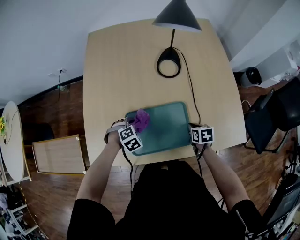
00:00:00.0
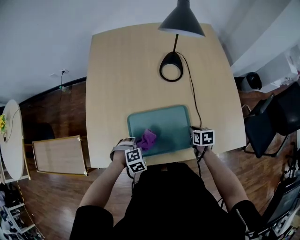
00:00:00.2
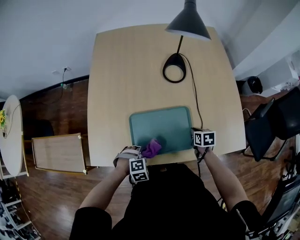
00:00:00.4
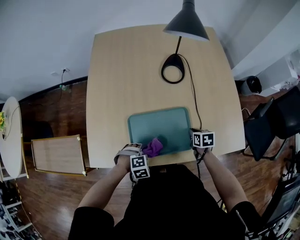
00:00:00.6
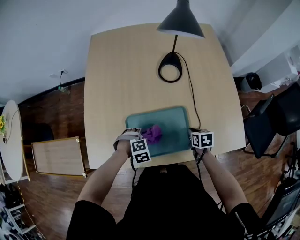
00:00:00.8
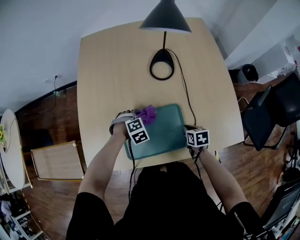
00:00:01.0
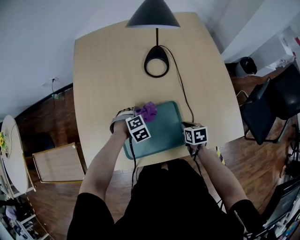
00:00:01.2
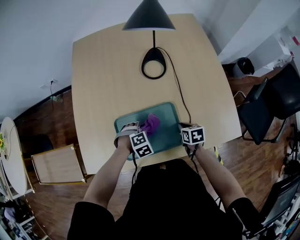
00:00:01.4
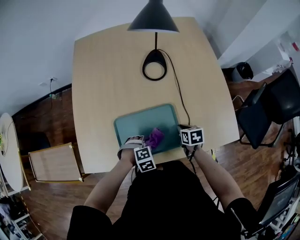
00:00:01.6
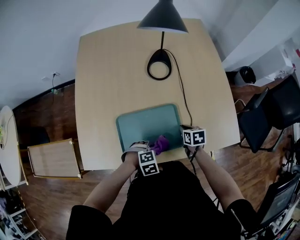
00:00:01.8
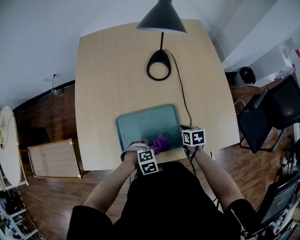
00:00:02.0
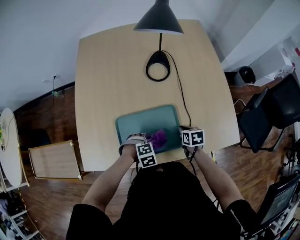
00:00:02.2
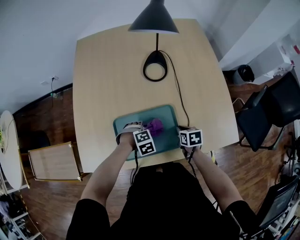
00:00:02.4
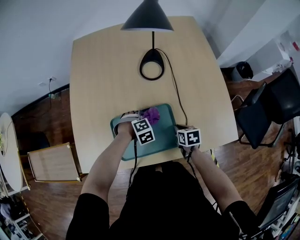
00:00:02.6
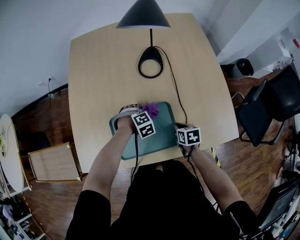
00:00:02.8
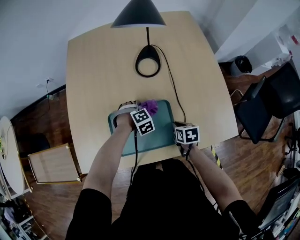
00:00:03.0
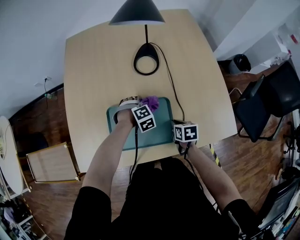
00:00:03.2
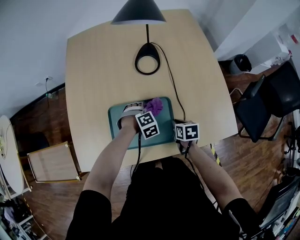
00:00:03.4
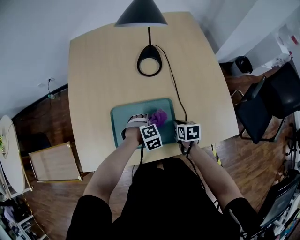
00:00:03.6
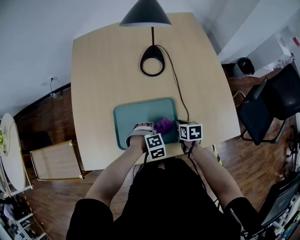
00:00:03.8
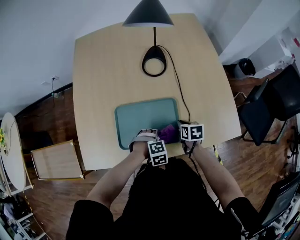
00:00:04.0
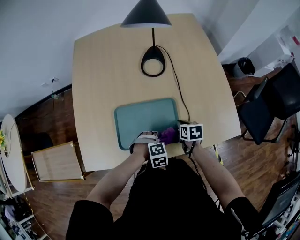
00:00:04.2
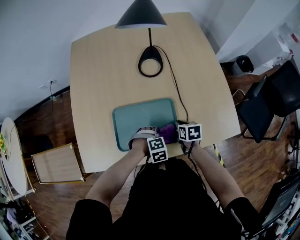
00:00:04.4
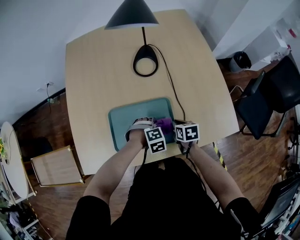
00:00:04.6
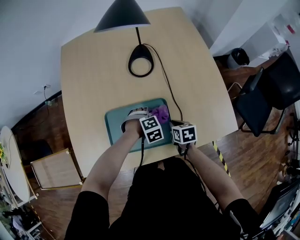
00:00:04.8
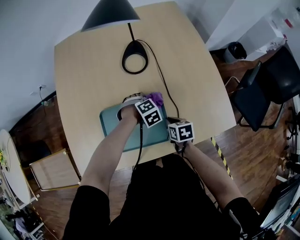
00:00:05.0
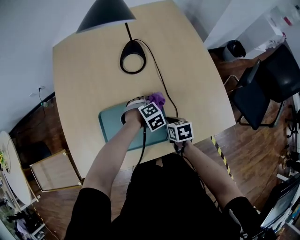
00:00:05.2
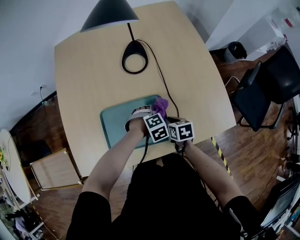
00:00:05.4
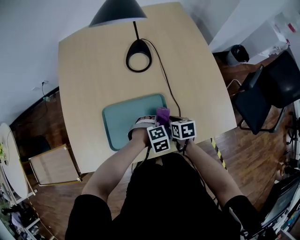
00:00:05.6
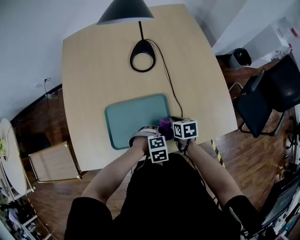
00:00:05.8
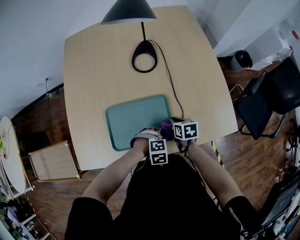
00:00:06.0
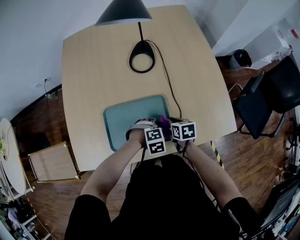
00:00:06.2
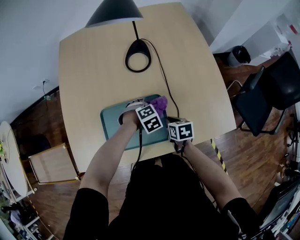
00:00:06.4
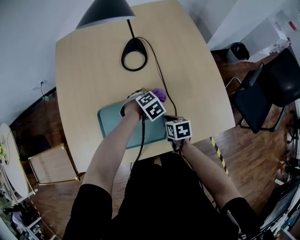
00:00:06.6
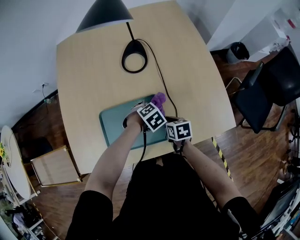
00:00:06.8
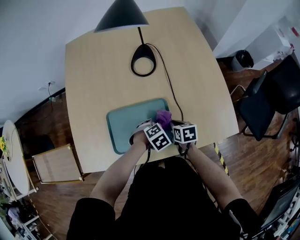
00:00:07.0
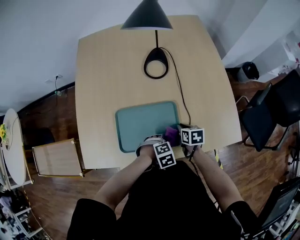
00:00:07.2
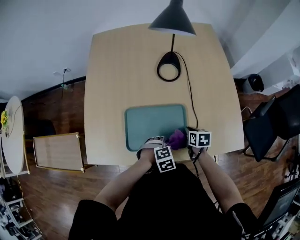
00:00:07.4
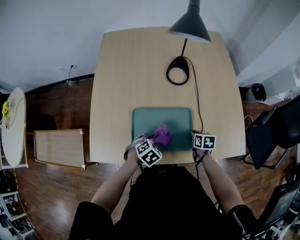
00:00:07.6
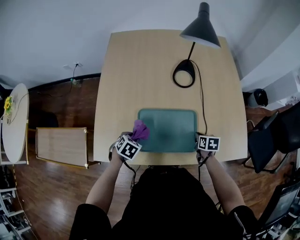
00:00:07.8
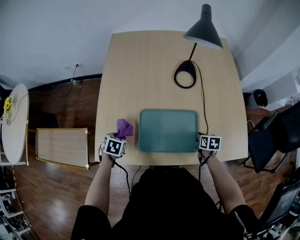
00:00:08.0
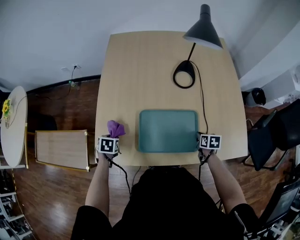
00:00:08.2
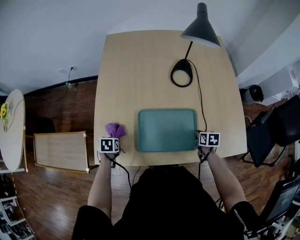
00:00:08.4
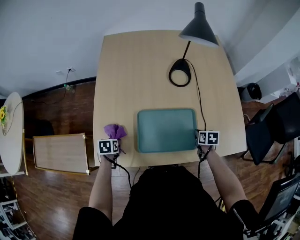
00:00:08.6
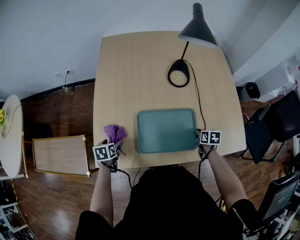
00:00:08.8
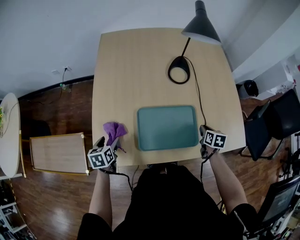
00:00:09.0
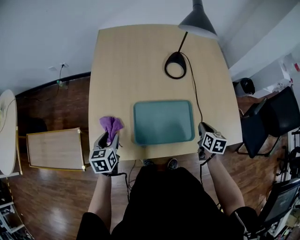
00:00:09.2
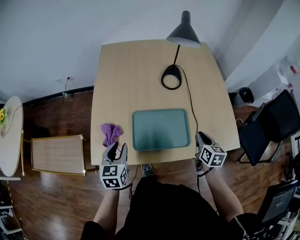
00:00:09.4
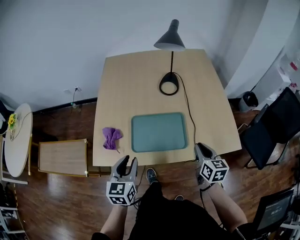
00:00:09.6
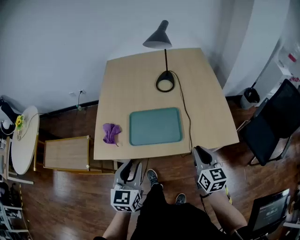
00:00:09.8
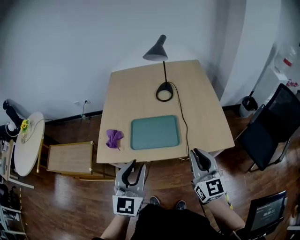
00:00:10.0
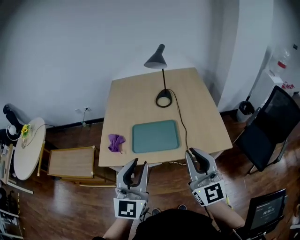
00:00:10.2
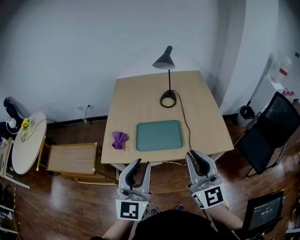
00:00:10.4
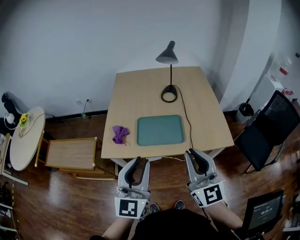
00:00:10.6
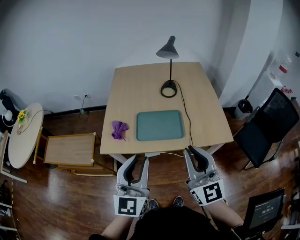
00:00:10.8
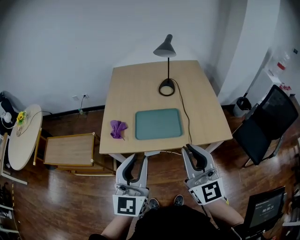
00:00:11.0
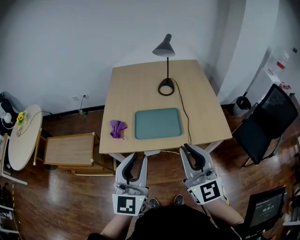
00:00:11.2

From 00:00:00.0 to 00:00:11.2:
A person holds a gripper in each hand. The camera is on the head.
From 00:00:00.0 to 00:00:01.6: The left gripper goes forward and backward, approximately 20 cm each way, reversing 2 times.
From 00:00:01.6 to 00:00:03.2: The left gripper shifts by approximately 20 cm.
From 00:00:06.4 to 00:00:08.0: The left gripper changes place by some 35 cm, and rotates around the line of its fingers by approximately 60 degrees, counterclockwise from behind.
From 00:00:08.0 to 00:00:09.6: The left gripper travels upward, to the right and backward by about 25 cm, tilts its fingers approximately 50 degrees upward, and opens and closes again. The right gripper is displaced upward and backward by approximately 25 cm, and tilts its fingers about 30 degrees upward.
From 00:00:09.6 to 00:00:11.2: The left gripper shifts approximately 25 cm upward and backward, and tilts its fingers about 30 degrees upward; the right gripper moves upward, backward and to the left, some 35 cm, and tilts its fingers some 40 degrees upward.

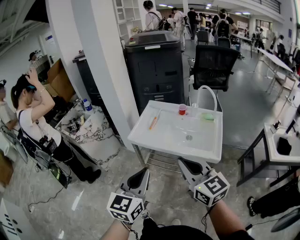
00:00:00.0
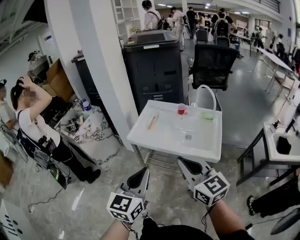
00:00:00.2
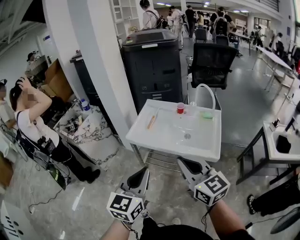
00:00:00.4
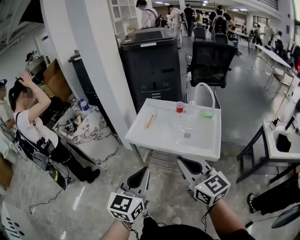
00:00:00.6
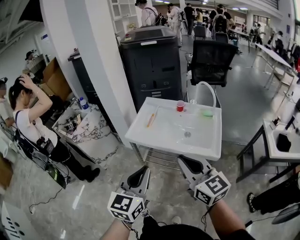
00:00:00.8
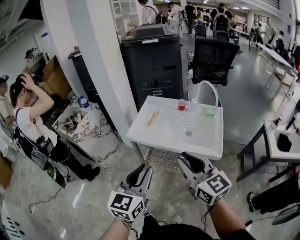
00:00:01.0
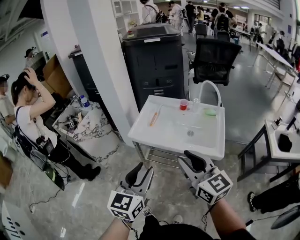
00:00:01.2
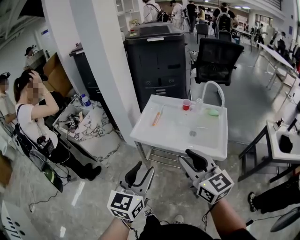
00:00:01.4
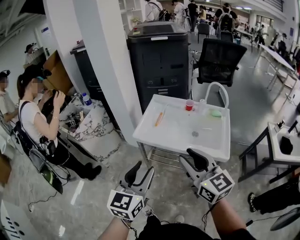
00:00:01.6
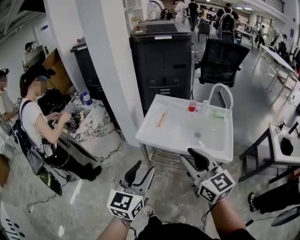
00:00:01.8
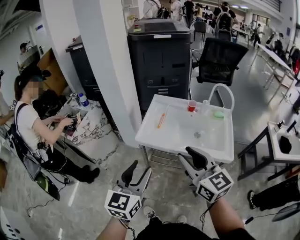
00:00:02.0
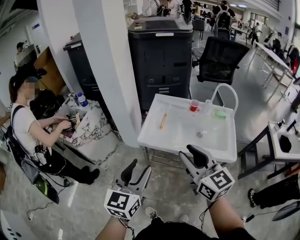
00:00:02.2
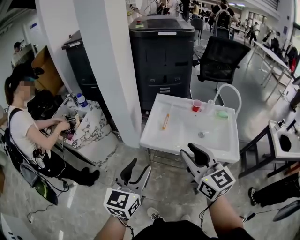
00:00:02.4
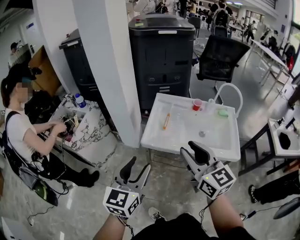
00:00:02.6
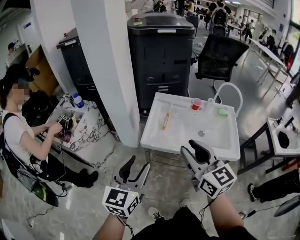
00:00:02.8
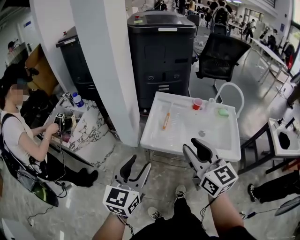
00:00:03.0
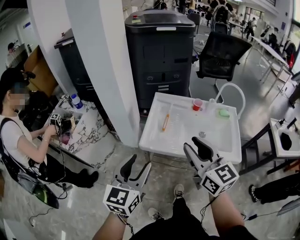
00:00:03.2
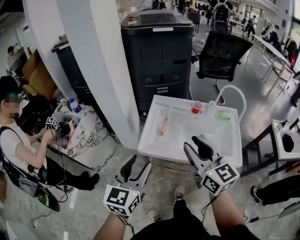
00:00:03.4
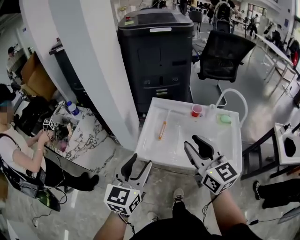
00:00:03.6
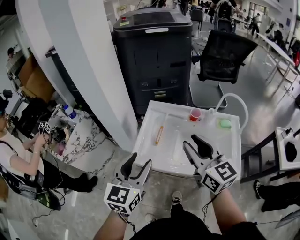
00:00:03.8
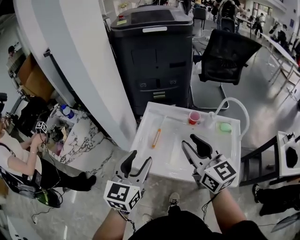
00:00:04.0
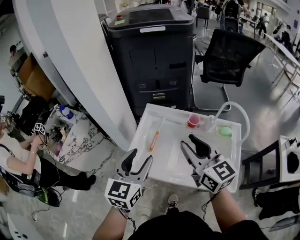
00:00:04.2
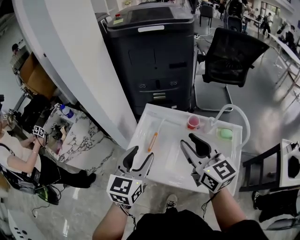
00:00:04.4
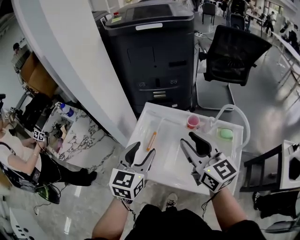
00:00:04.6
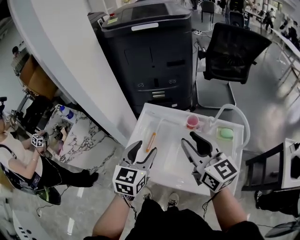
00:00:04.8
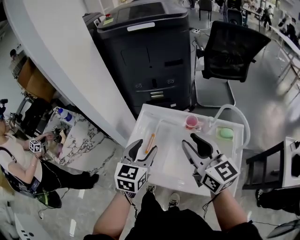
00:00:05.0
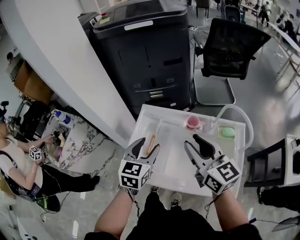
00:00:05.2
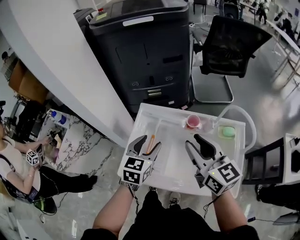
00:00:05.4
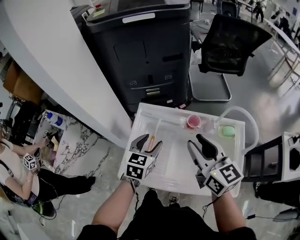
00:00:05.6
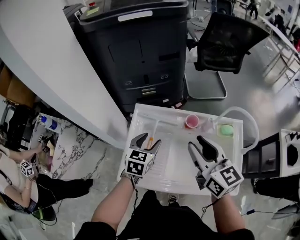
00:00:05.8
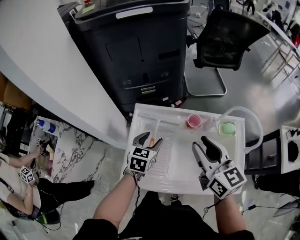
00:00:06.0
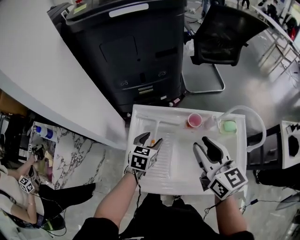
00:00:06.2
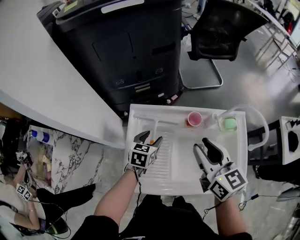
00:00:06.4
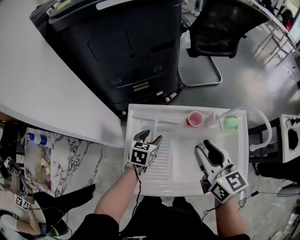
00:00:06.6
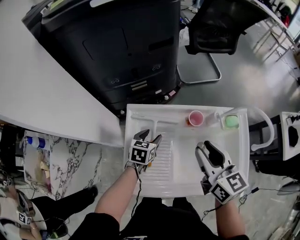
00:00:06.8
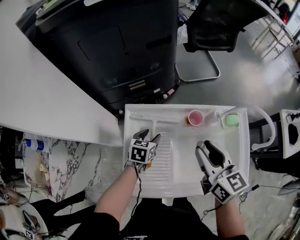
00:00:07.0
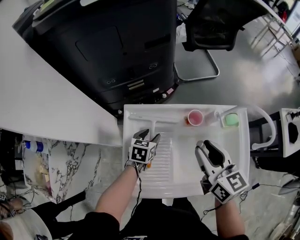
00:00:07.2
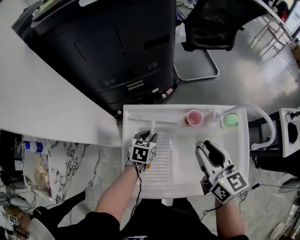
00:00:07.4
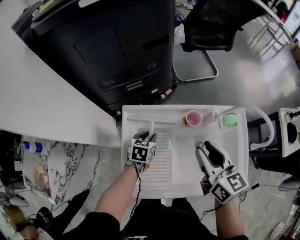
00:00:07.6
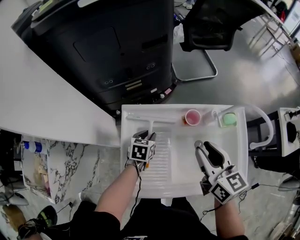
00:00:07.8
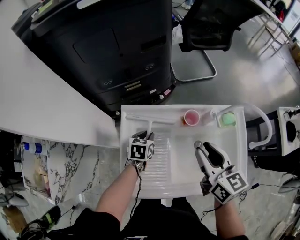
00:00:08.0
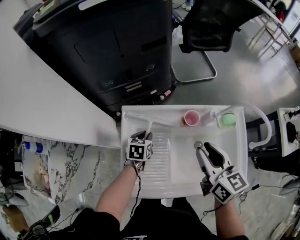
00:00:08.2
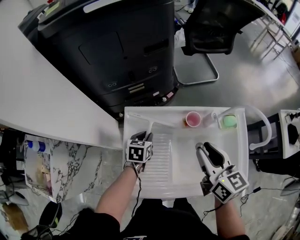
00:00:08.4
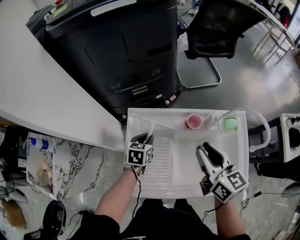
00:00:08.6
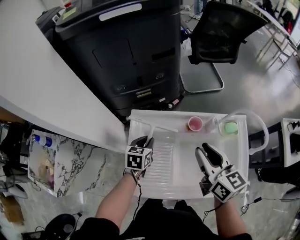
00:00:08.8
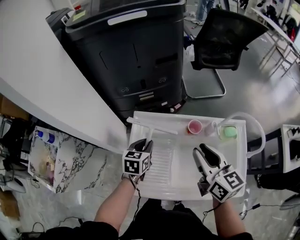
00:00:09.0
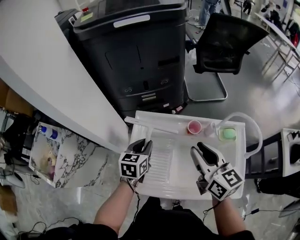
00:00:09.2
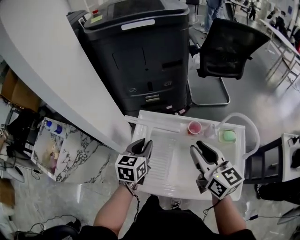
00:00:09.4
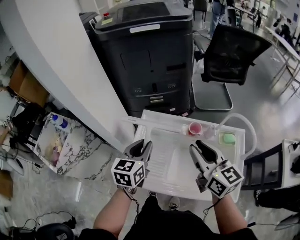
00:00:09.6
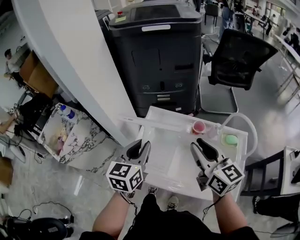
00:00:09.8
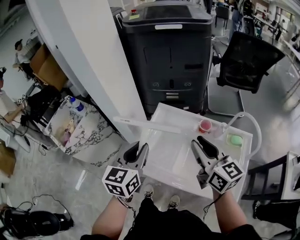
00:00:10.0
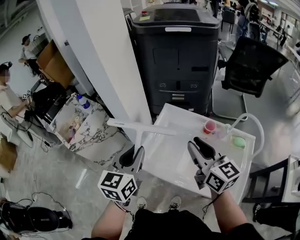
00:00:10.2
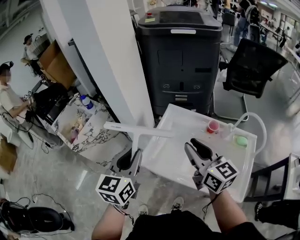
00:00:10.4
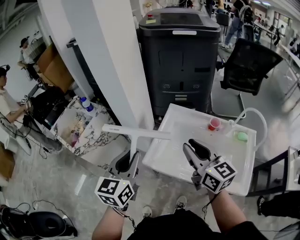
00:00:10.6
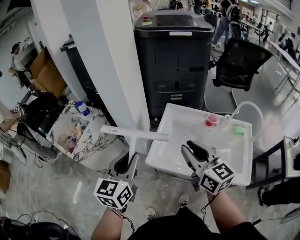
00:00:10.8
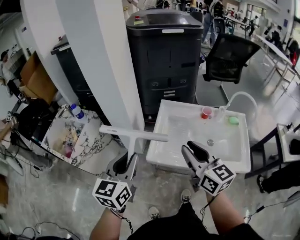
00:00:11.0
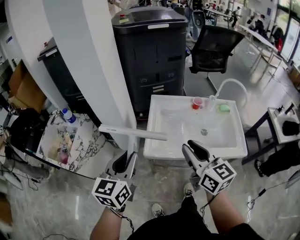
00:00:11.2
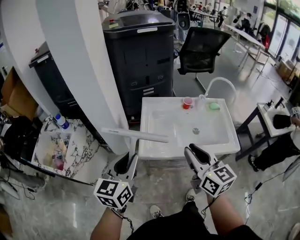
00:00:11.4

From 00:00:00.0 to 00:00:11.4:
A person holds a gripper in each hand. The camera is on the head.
From 00:00:00.0 to 00:00:01.4: The right gripper changes place by about 5 cm, and opens. Meanwhile the left gripper changes place by roughly 5 cm, and opens up.
From 00:00:01.4 to 00:00:02.8: The two grippers go some 20 cm to the left and forward.
From 00:00:02.8 to 00:00:04.2: The two grippers go roughly 25 cm forward and to the right.
From 00:00:04.2 to 00:00:05.6: The left gripper travels forward, downward and to the right by roughly 20 cm; the right gripper shifts about 10 cm forward.
From 00:00:05.6 to 00:00:07.2: The right gripper goes approximately 10 cm downward, and swivels about 20 degrees; the left gripper heads downward and forward, covering roughly 20 cm, and swivels approximately 20 degrees.
From 00:00:07.2 to 00:00:08.6: The left gripper closes its fingers.
From 00:00:08.6 to 00:00:10.0: The right gripper heads upward, covering some 10 cm, and swivels approximately 30 degrees. The left gripper shifts some 25 cm upward, and tips its fingers upward by approximately 30 degrees.
From 00:00:10.0 to 00:00:11.4: The left gripper changes place by about 20 cm, and swivels about 20 degrees. The right gripper ends up approximately 25 cm from where it was, and swivels some 20 degrees.

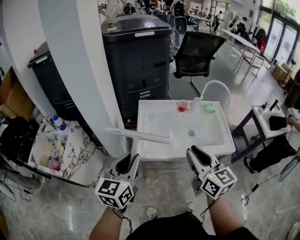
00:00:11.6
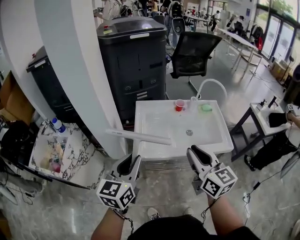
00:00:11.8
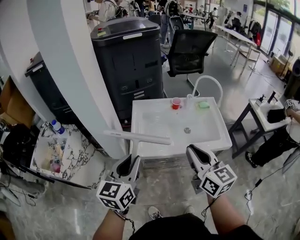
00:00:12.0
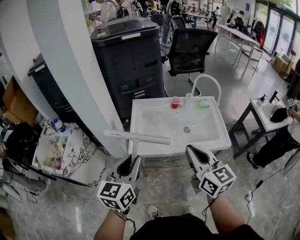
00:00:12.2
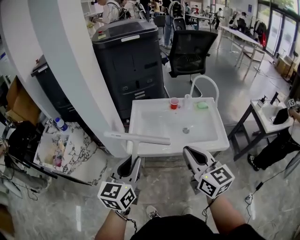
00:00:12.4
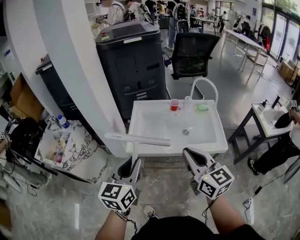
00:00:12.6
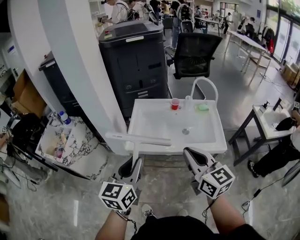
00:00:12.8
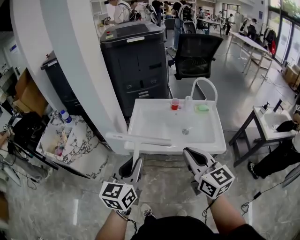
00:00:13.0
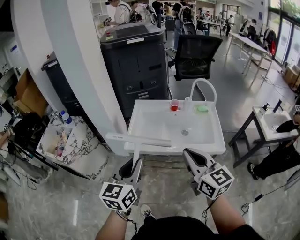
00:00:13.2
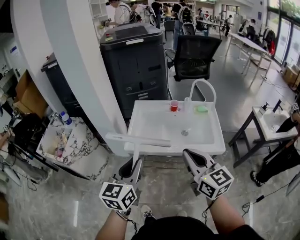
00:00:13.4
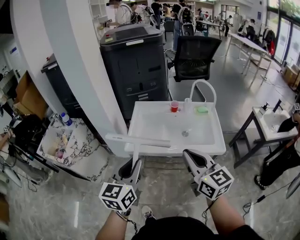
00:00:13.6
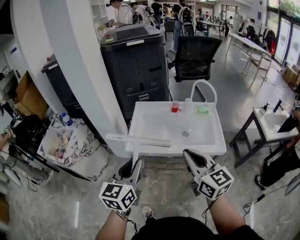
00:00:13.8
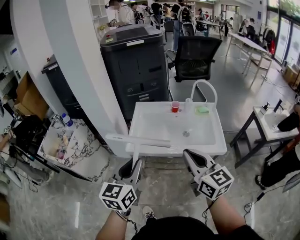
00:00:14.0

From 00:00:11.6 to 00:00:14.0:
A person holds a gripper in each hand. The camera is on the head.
From 00:00:11.6 to 00:00:12.8: Both grippers move to the right and backward, roughly 15 cm.
From 00:00:12.8 to 00:00:14.0: The two grippers keep their place.
